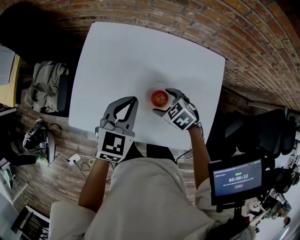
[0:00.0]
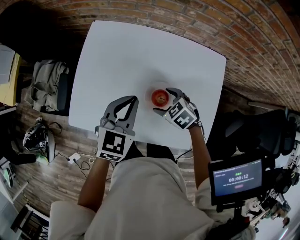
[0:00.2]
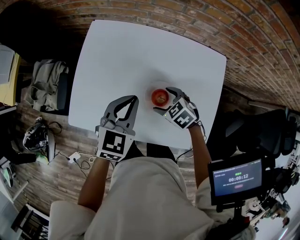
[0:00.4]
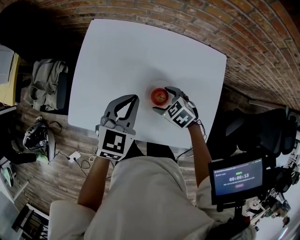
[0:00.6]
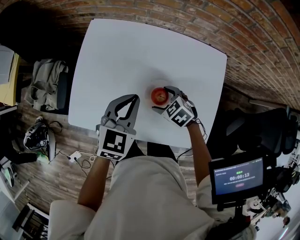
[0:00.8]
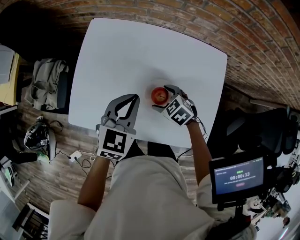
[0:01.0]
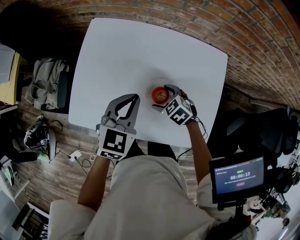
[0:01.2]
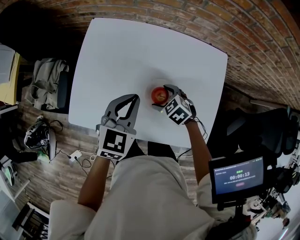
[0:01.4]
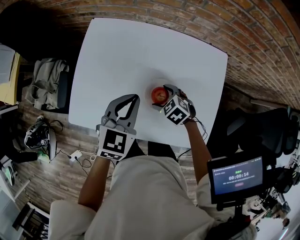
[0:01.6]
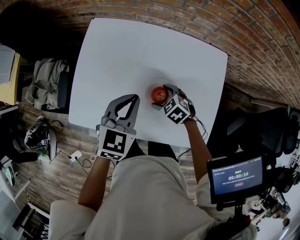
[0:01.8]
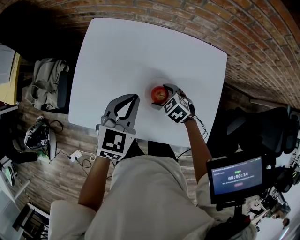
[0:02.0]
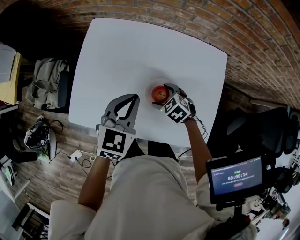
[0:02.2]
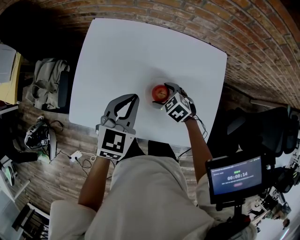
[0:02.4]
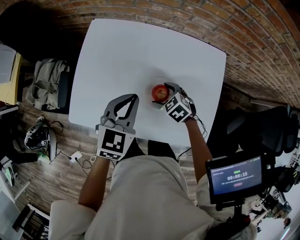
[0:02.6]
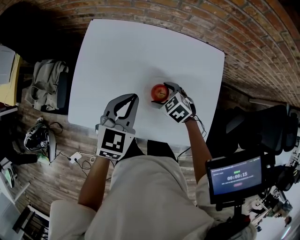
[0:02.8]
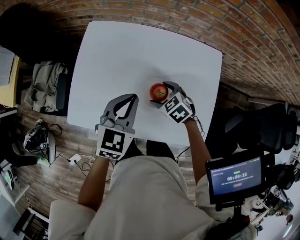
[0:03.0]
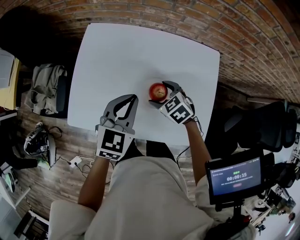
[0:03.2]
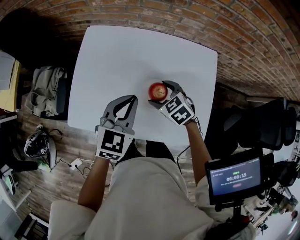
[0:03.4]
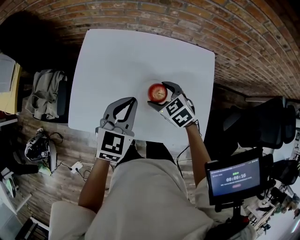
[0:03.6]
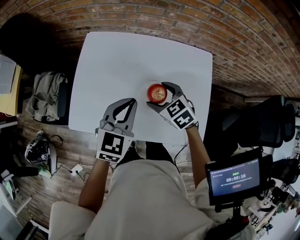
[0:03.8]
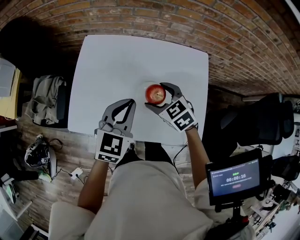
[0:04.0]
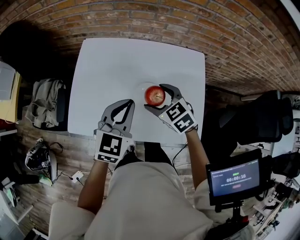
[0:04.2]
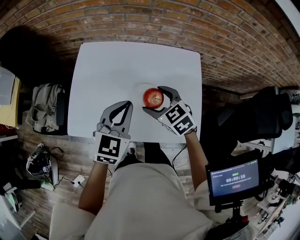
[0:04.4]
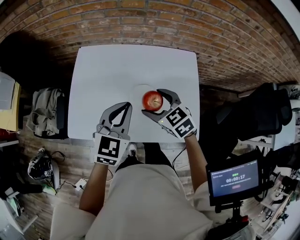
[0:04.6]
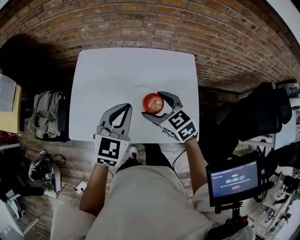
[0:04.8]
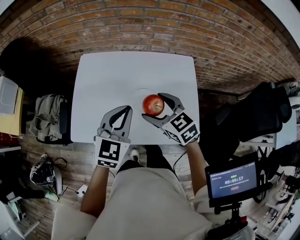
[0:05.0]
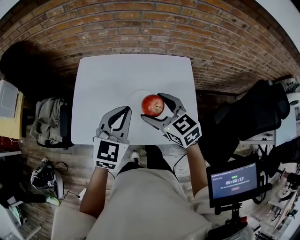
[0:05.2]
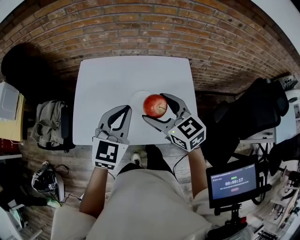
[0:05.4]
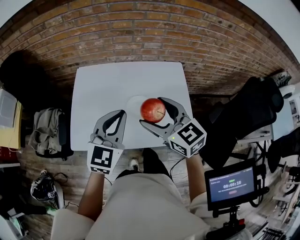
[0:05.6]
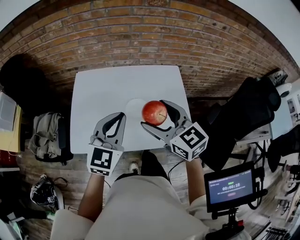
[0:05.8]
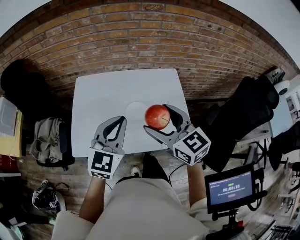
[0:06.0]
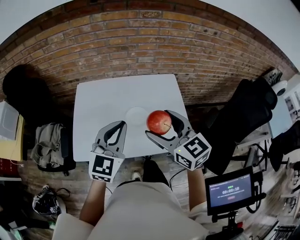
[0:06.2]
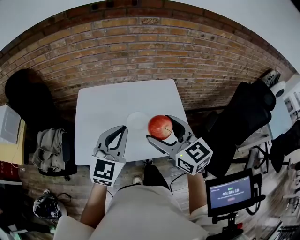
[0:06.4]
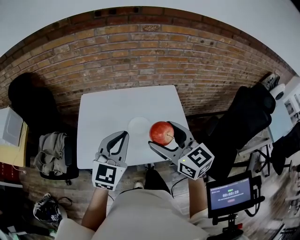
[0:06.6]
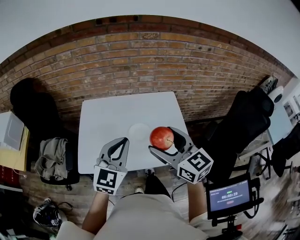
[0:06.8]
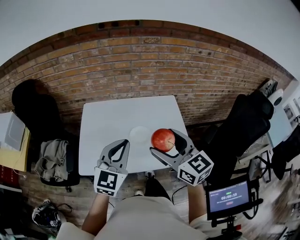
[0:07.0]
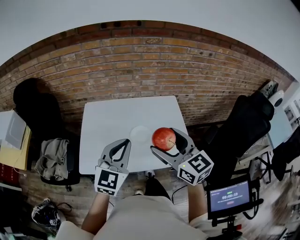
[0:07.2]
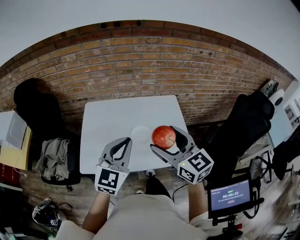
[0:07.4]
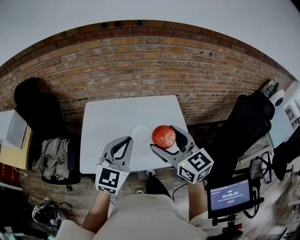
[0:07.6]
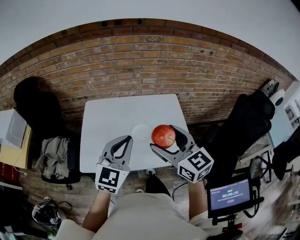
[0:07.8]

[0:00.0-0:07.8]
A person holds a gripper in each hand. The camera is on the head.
0:00.0 to 0:01.6: The grippers move only a little.
0:01.6 to 0:03.2: The right gripper moves approximately 5 cm.
0:03.2 to 0:04.6: The right gripper heads upward and backward, covering approximately 15 cm. Meanwhile the left gripper travels backward and upward by roughly 10 cm.
0:04.6 to 0:06.2: The right gripper travels upward and backward by some 20 cm, and turns by some 30 degrees. The left gripper moves upward and backward, roughly 10 cm.
0:06.2 to 0:07.8: The grippers stay close to where they were, moving slightly.

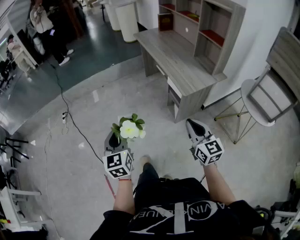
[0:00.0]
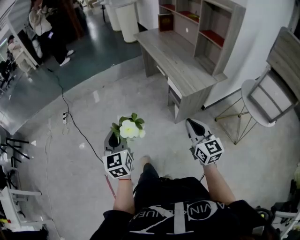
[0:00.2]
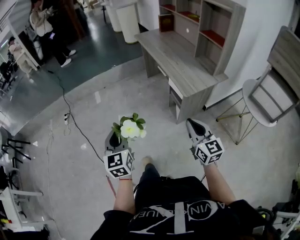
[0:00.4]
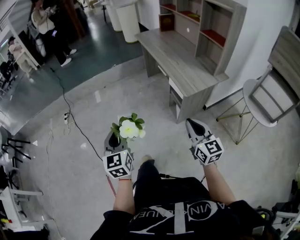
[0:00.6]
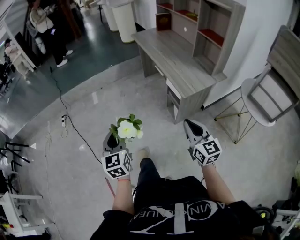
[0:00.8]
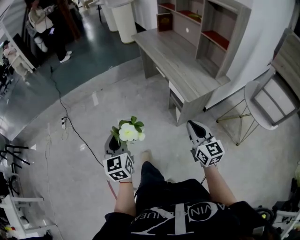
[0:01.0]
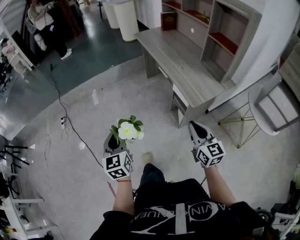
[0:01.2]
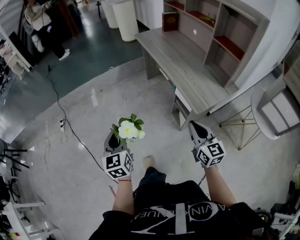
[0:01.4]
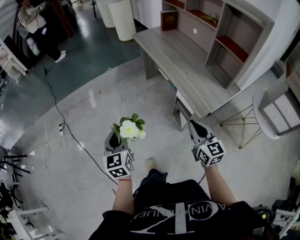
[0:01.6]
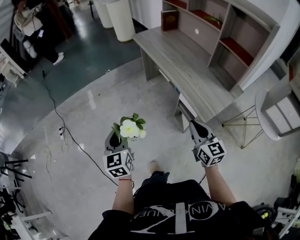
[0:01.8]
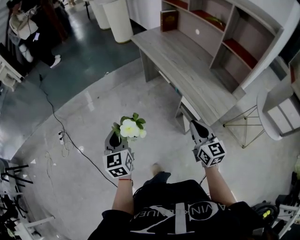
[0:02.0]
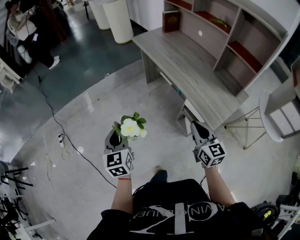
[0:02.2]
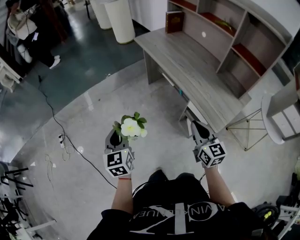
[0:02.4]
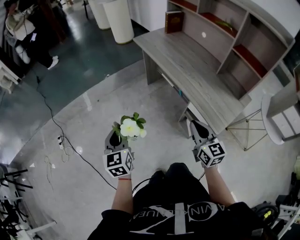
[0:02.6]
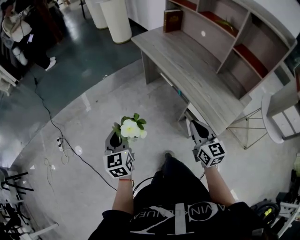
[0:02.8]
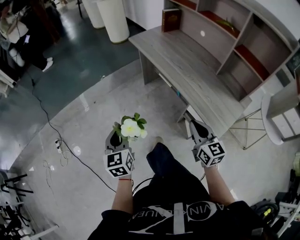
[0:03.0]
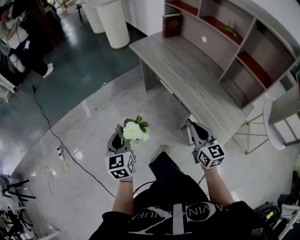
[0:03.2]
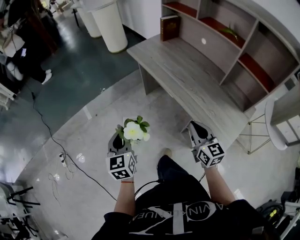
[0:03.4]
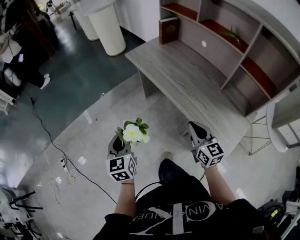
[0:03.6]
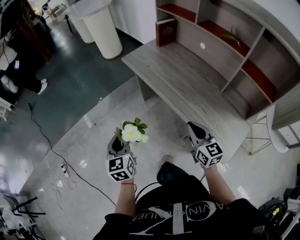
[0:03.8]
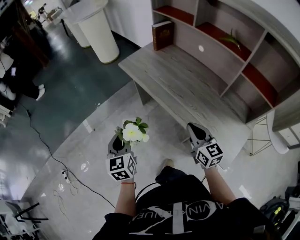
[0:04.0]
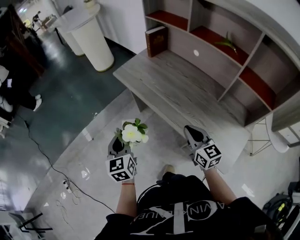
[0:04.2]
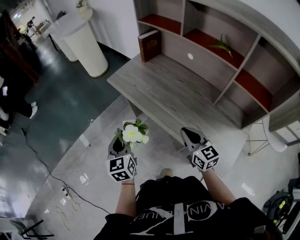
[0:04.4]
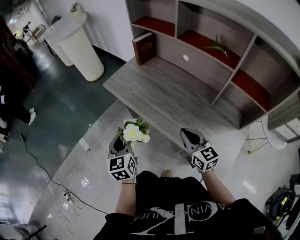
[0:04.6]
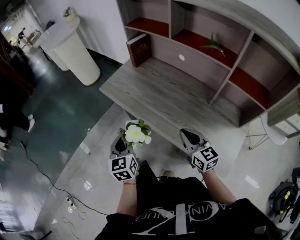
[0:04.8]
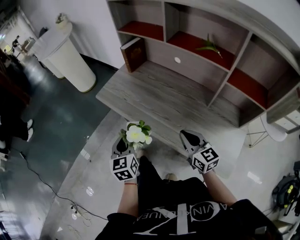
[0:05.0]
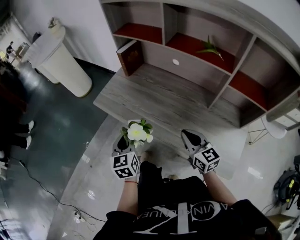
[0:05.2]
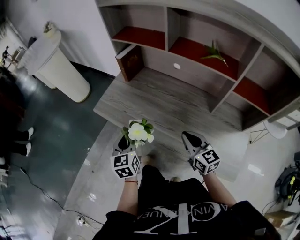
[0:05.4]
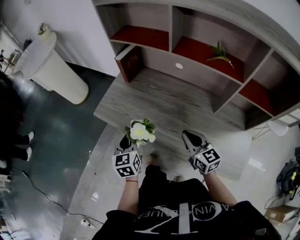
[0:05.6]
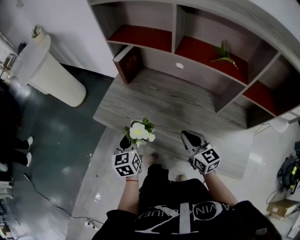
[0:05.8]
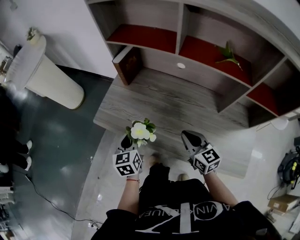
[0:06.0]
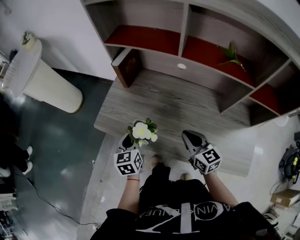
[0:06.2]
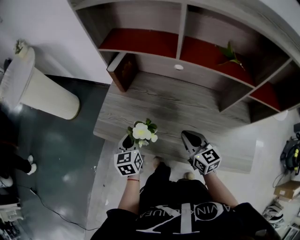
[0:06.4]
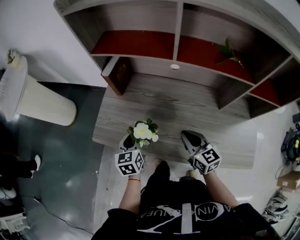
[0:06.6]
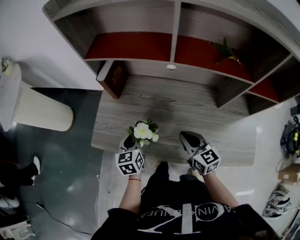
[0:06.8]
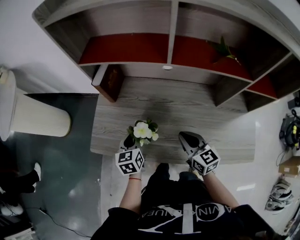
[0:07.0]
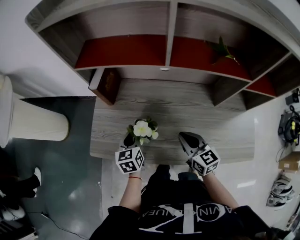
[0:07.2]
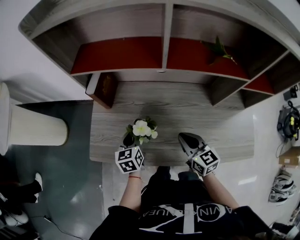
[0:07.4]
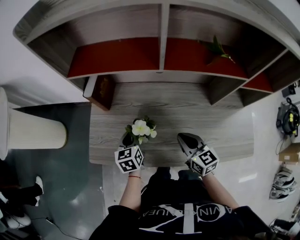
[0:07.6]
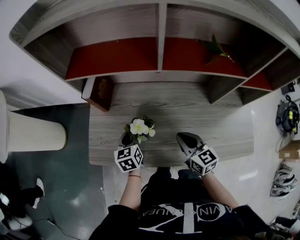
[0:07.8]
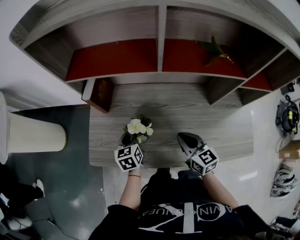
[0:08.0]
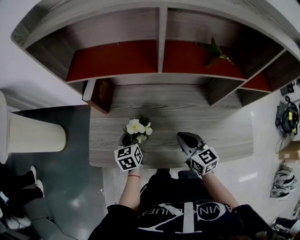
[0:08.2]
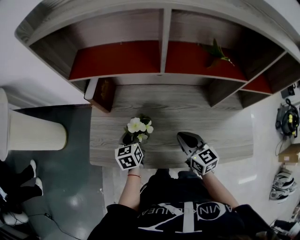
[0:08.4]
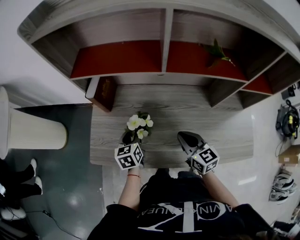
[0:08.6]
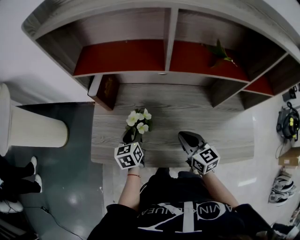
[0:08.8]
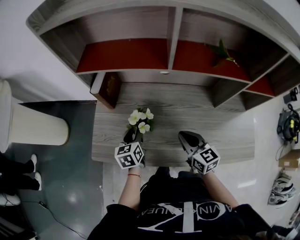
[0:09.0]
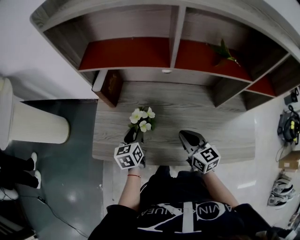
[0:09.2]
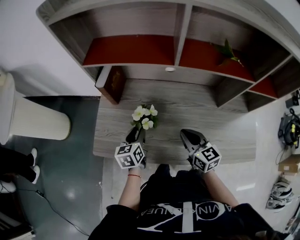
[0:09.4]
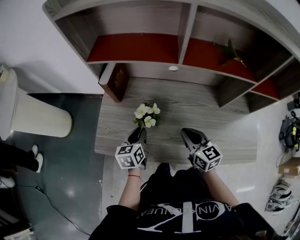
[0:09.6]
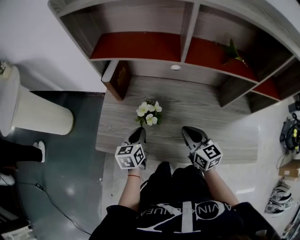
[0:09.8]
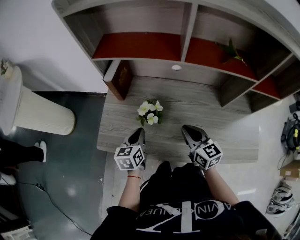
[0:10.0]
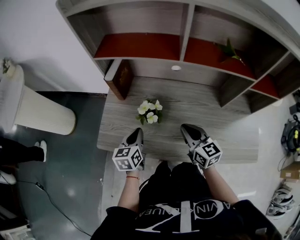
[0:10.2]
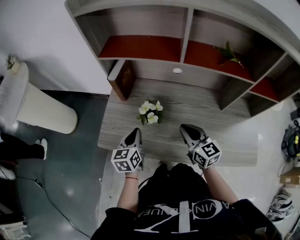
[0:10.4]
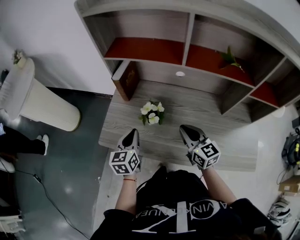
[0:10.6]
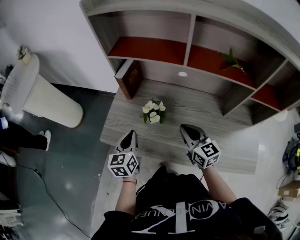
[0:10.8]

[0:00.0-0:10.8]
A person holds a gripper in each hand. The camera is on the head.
0:00.0 to 0:01.6: Both grippers travel together forward, approximately 20 cm.
0:01.6 to 0:03.0: Both grippers move forward, approximately 20 cm.
0:03.0 to 0:04.6: The grippers both shift forward by about 30 cm.
0:04.6 to 0:06.2: Both grippers move forward, approximately 20 cm. The right gripper rotates roughly 20 degrees. Meanwhile the left gripper swivels approximately 30 degrees.
0:06.2 to 0:07.8: The left gripper travels forward and downward by roughly 15 cm.
0:07.8 to 0:09.2: The left gripper opens its fingers.
0:09.2 to 0:10.8: The right gripper moves about 5 cm. The left gripper moves upward, backward and to the left, about 10 cm, and closes up.

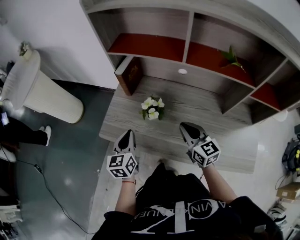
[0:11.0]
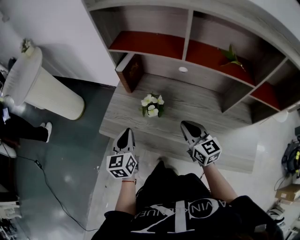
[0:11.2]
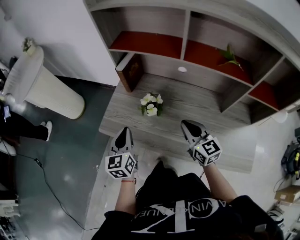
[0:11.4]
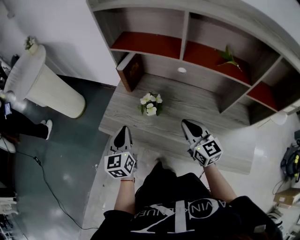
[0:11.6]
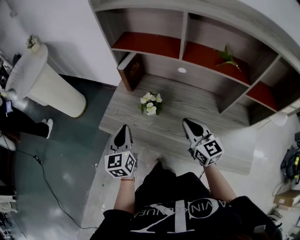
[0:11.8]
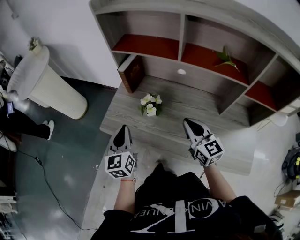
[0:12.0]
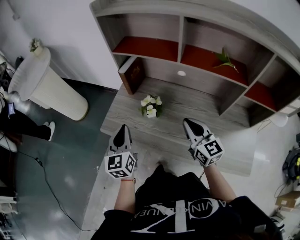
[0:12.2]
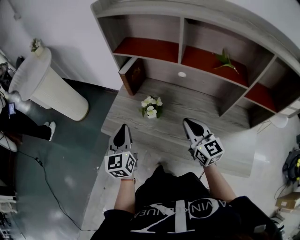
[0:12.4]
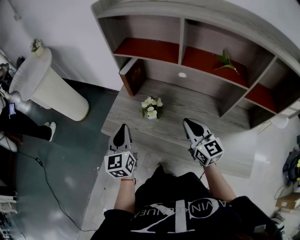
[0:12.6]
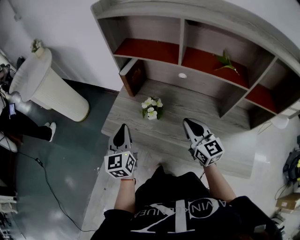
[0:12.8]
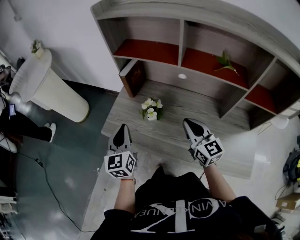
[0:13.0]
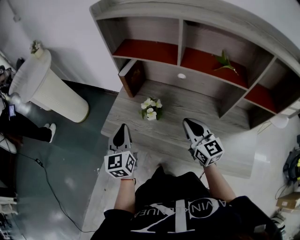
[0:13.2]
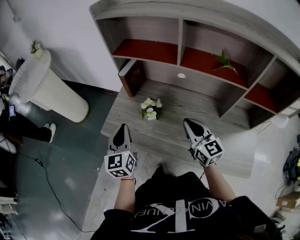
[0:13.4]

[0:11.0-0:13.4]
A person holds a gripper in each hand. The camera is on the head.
0:11.0 to 0:12.2: Both grippers move upward, roughly 5 cm.
0:12.2 to 0:13.4: The grippers stay close to where they were, moving slightly.

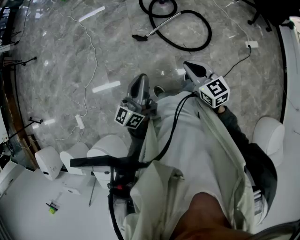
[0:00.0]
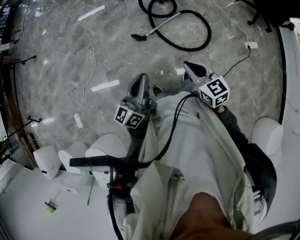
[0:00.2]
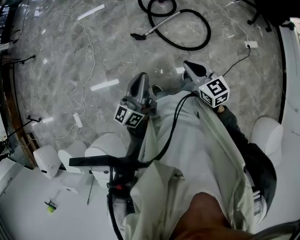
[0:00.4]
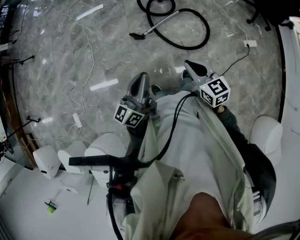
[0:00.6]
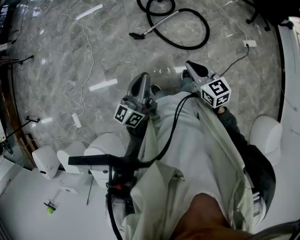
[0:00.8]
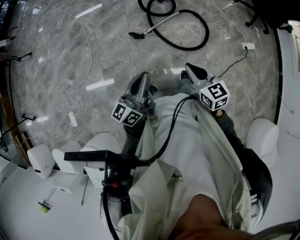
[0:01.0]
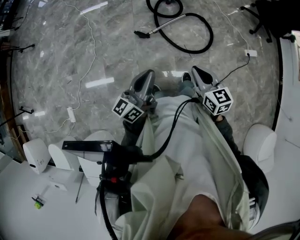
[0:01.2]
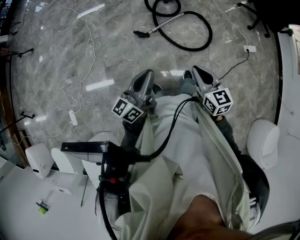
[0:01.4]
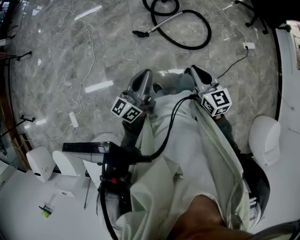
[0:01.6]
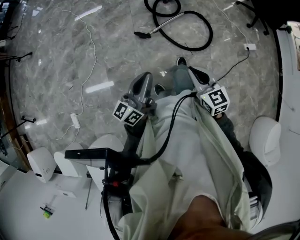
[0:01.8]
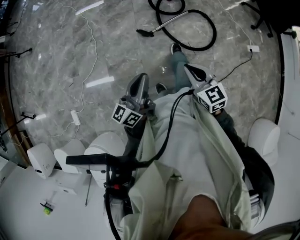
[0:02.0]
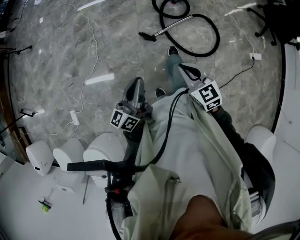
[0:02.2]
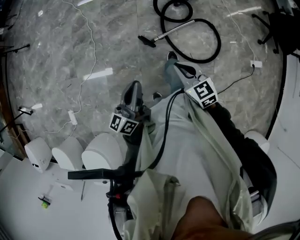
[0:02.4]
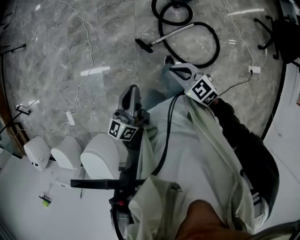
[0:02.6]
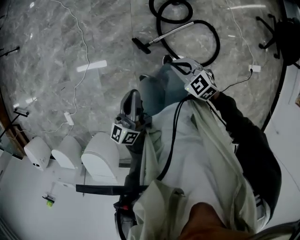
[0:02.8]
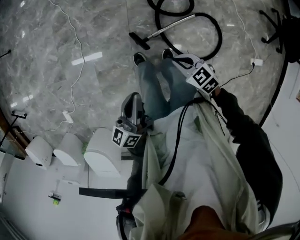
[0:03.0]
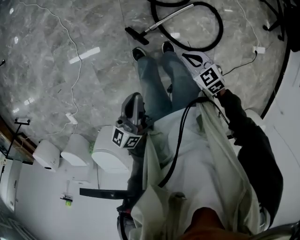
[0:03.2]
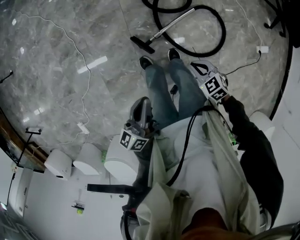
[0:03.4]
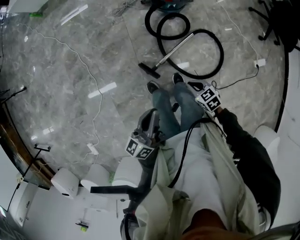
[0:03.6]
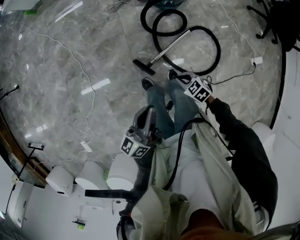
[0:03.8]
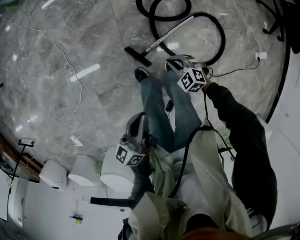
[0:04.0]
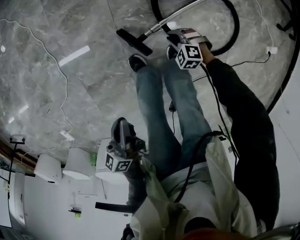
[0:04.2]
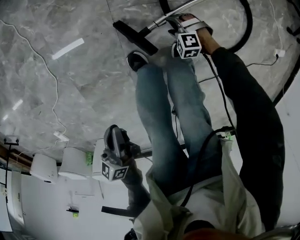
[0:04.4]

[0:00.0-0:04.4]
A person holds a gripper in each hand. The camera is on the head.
0:00.0 to 0:01.4: The grippers move only a little.
0:01.4 to 0:03.0: The left gripper changes place by some 35 cm, and turns by roughly 30 degrees; the right gripper ends up approximately 40 cm from where it was, and swivels approximately 50 degrees.
0:03.0 to 0:04.4: The right gripper moves downward, about 60 cm, twists about 40 degrees counterclockwise, seen from behind, and opens up; the left gripper moves up and down over about 35 cm, changing direction 2 times.
